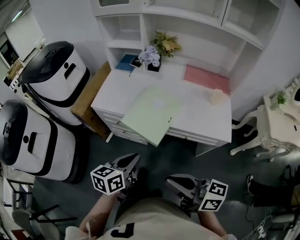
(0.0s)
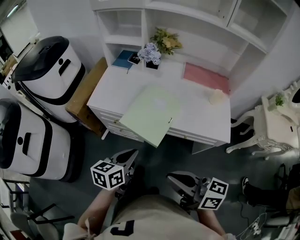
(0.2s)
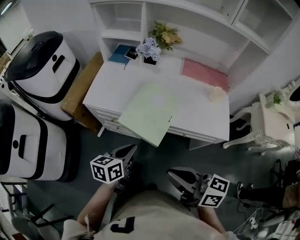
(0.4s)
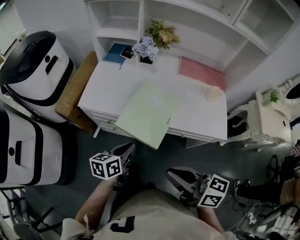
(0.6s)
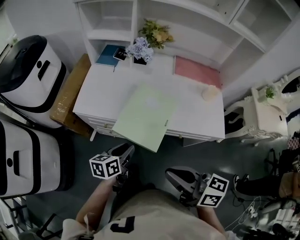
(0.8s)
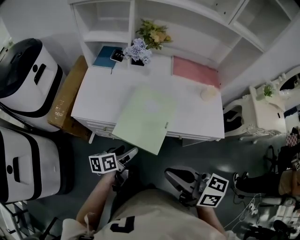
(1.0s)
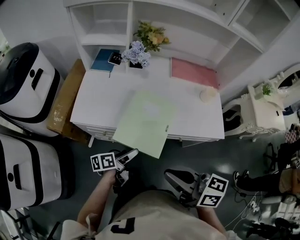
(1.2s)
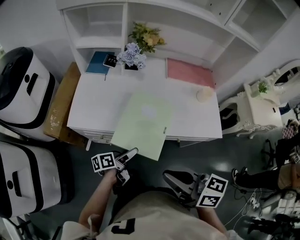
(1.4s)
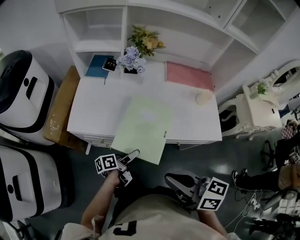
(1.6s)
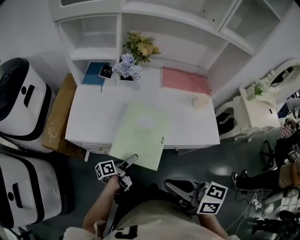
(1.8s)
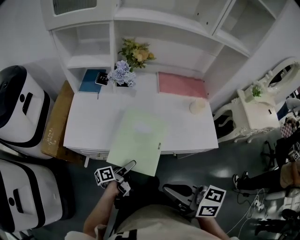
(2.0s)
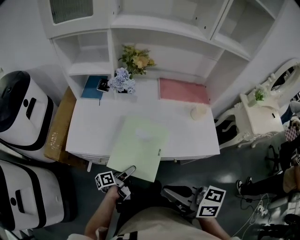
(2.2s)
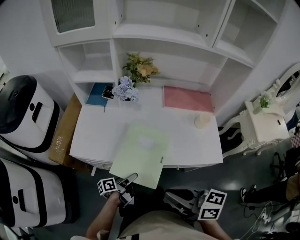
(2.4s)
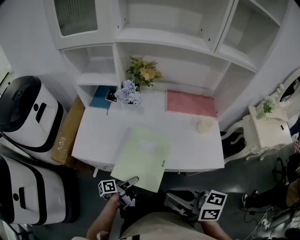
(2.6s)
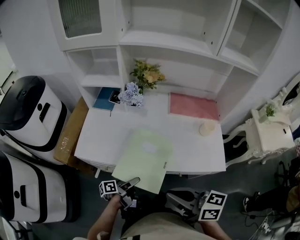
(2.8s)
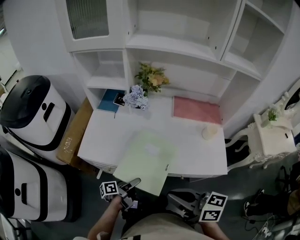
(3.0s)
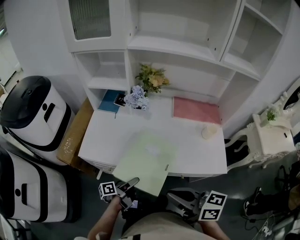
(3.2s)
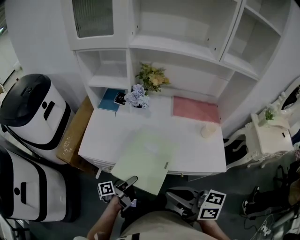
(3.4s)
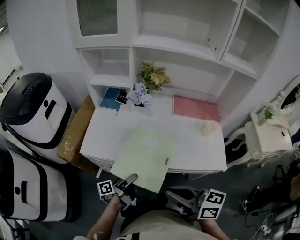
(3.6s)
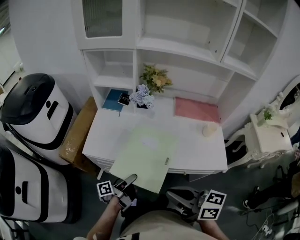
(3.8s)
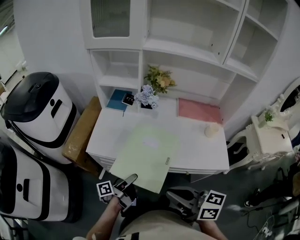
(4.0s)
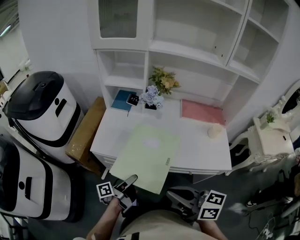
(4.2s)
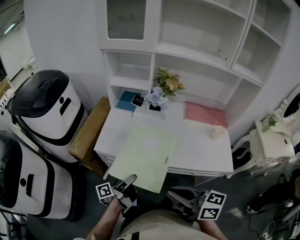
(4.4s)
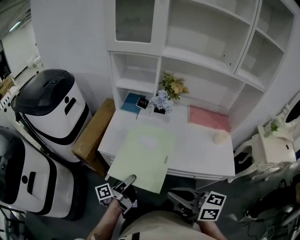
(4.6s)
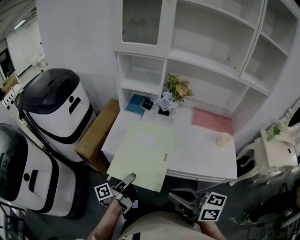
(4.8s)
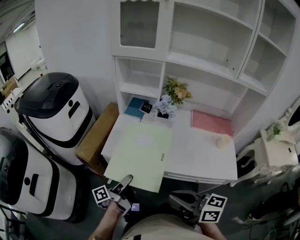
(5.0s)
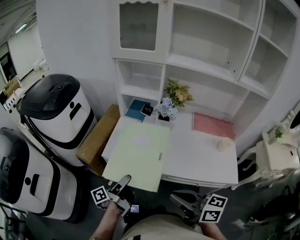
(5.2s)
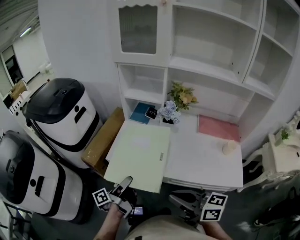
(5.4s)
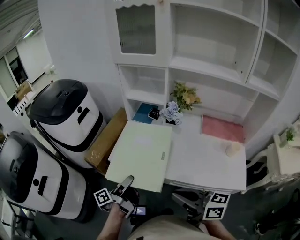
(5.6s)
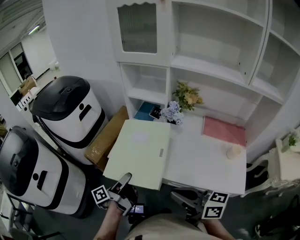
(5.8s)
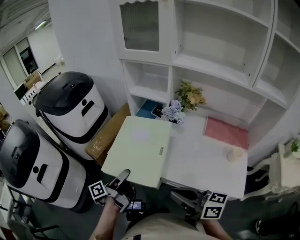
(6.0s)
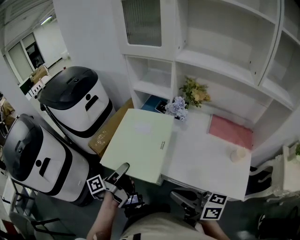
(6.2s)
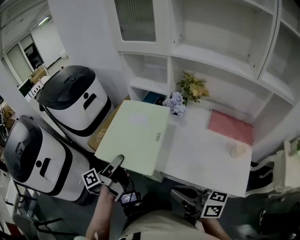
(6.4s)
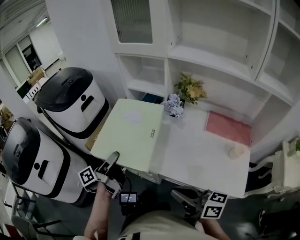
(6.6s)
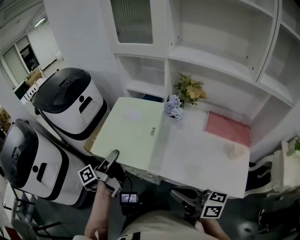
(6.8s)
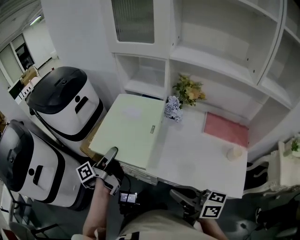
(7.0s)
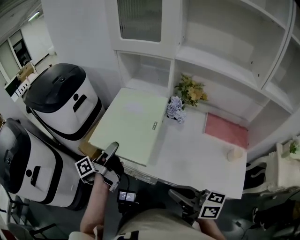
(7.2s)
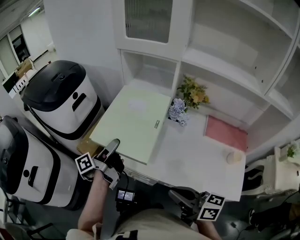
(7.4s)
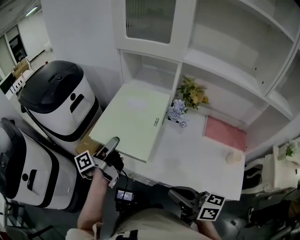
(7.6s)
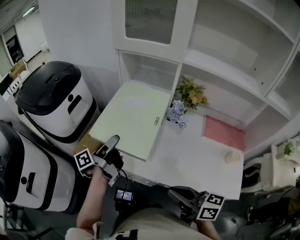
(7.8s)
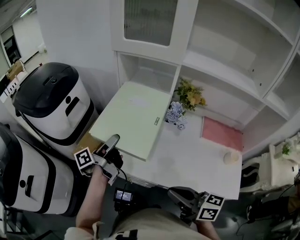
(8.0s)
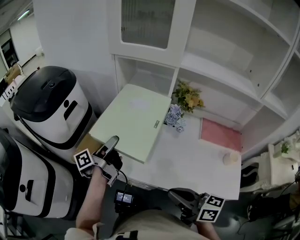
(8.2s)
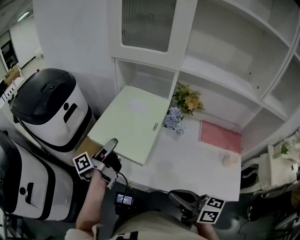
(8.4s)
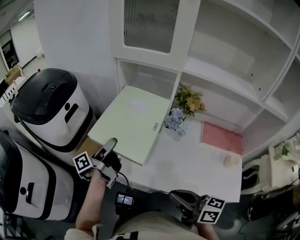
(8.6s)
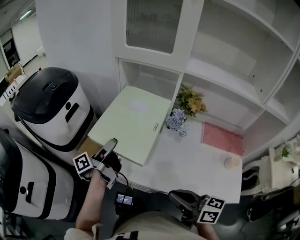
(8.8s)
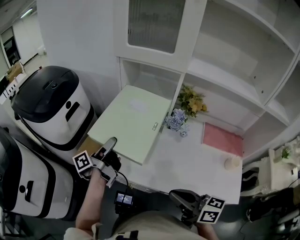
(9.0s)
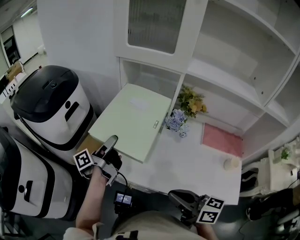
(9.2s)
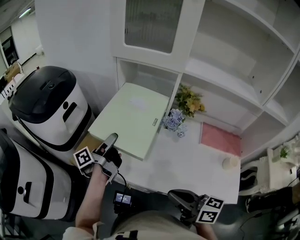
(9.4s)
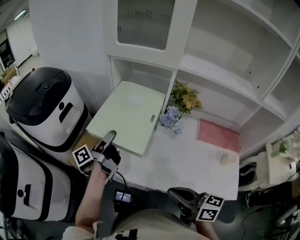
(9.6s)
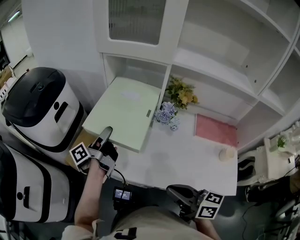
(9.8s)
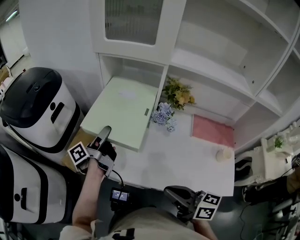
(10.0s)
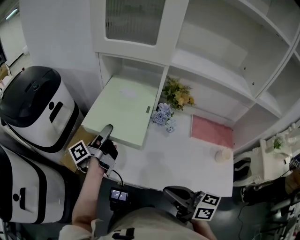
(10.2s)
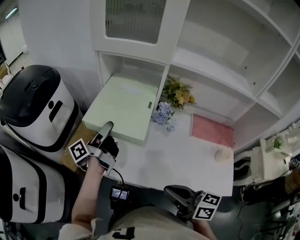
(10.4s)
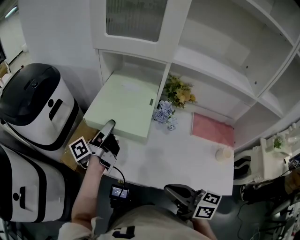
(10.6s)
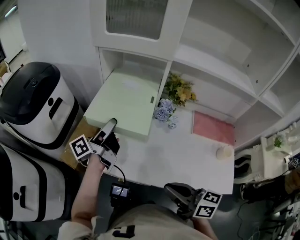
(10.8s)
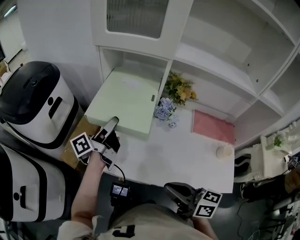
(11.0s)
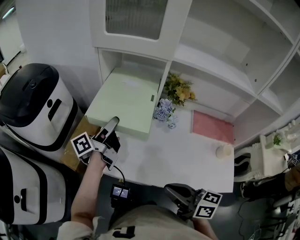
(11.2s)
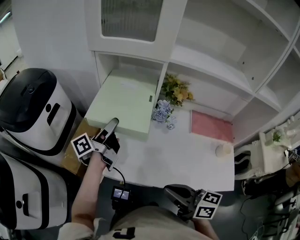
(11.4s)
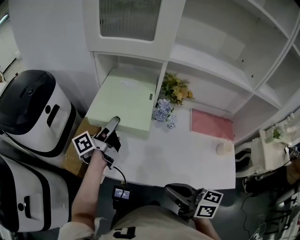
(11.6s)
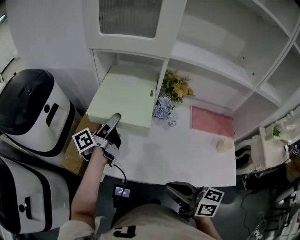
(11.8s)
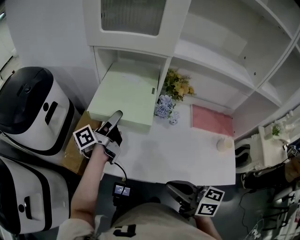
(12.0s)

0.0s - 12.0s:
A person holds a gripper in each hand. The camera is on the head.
0.0s - 1.6s: The right gripper is displaced forward and to the left by roughly 15 cm, and changes its angle by roughly 20 degrees; the left gripper travels downward and forward by approximately 25 cm, rolls counterclockwise, seen from behind, by some 40 degrees, and opens its fingers.
1.6s - 3.0s: The right gripper moves roughly 5 cm, while the left gripper closes its fingers.
3.0s - 4.4s: The right gripper moves to the left, approximately 10 cm. Meanwhile the left gripper is displaced to the left and upward by roughly 15 cm, and changes its angle by approximately 20 degrees.
4.4s - 6.0s: The right gripper moves forward, about 5 cm; the left gripper moves upward and forward, some 10 cm, and changes its angle by about 20 degrees.
6.0s - 7.6s: The left gripper travels forward by roughly 15 cm. Meanwhile the right gripper heads forward, covering roughly 5 cm.
7.6s - 9.0s: The left gripper is displaced forward by roughly 5 cm.
9.0s - 10.4s: The left gripper is displaced to the right by roughly 5 cm.
10.4s - 12.0s: The grippers make only small movements.

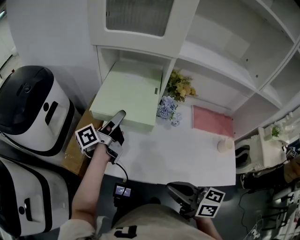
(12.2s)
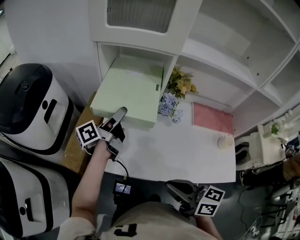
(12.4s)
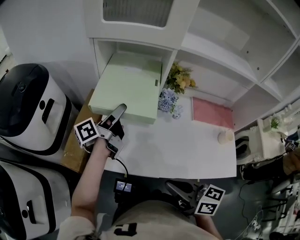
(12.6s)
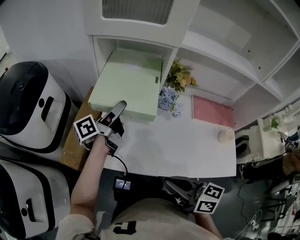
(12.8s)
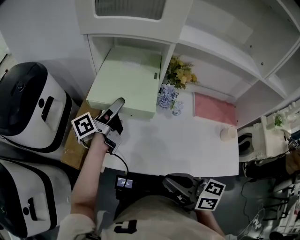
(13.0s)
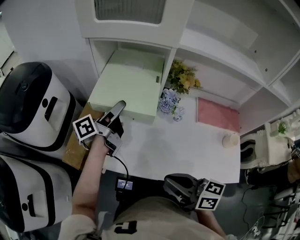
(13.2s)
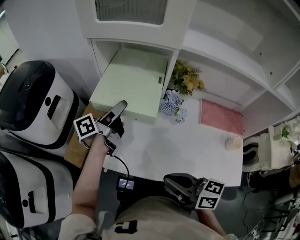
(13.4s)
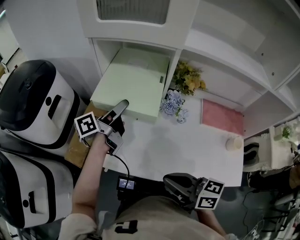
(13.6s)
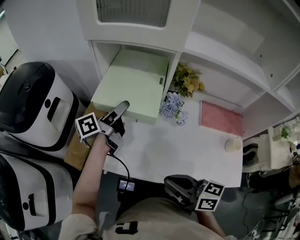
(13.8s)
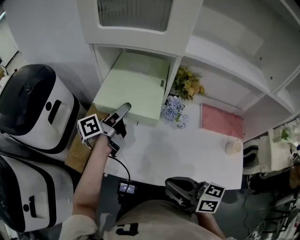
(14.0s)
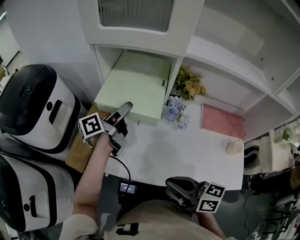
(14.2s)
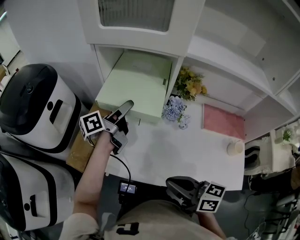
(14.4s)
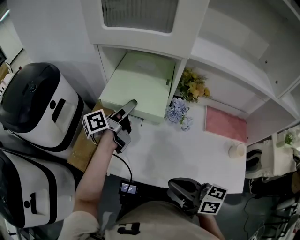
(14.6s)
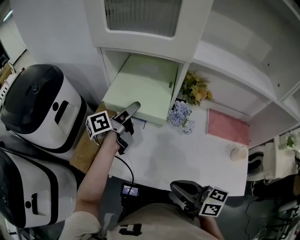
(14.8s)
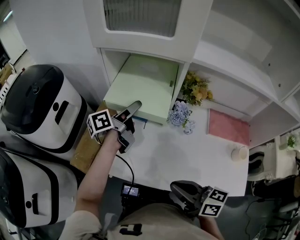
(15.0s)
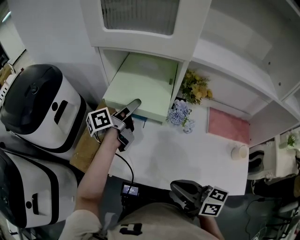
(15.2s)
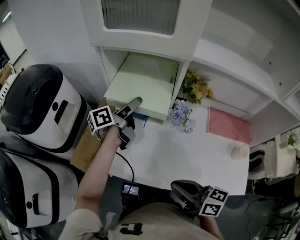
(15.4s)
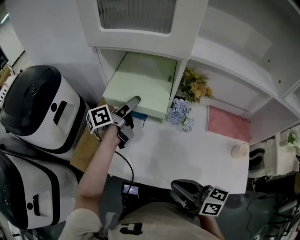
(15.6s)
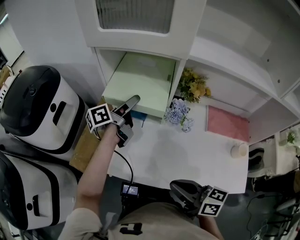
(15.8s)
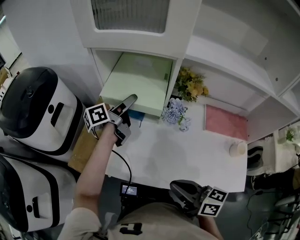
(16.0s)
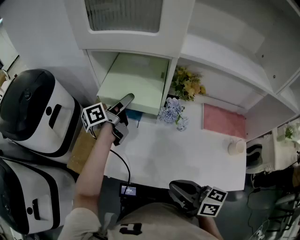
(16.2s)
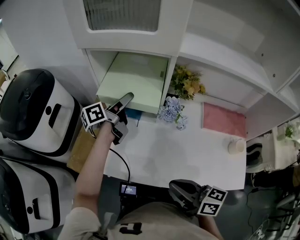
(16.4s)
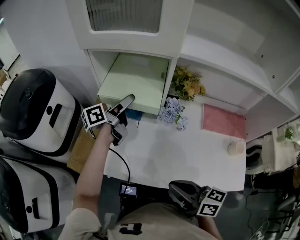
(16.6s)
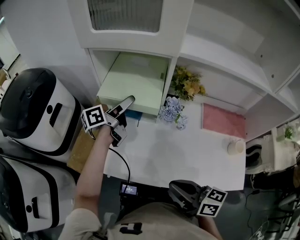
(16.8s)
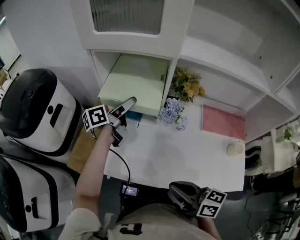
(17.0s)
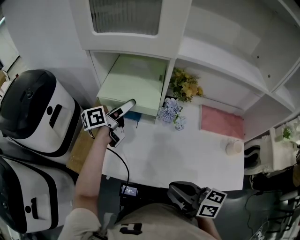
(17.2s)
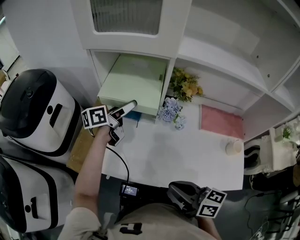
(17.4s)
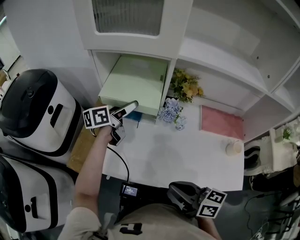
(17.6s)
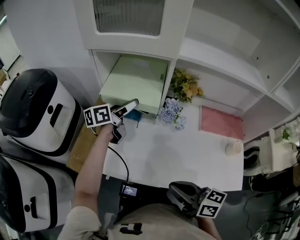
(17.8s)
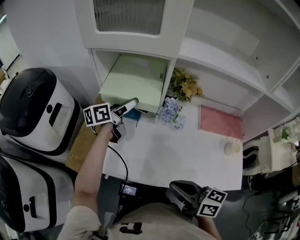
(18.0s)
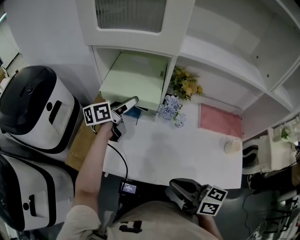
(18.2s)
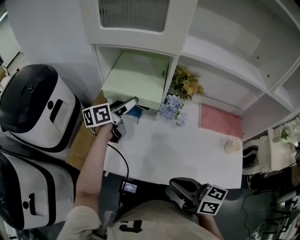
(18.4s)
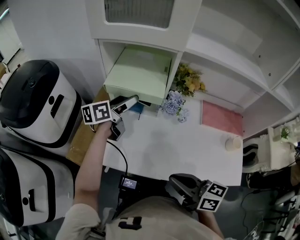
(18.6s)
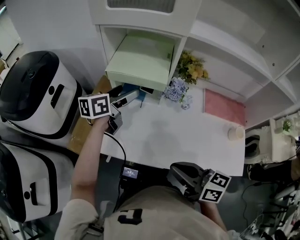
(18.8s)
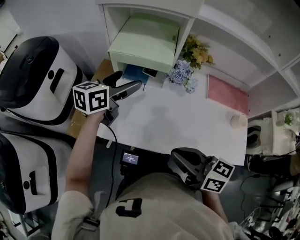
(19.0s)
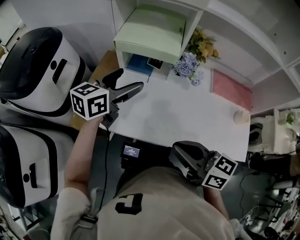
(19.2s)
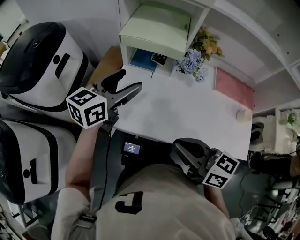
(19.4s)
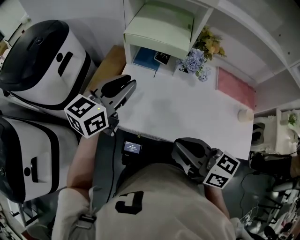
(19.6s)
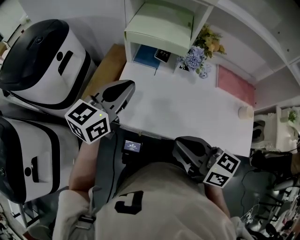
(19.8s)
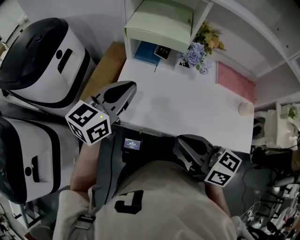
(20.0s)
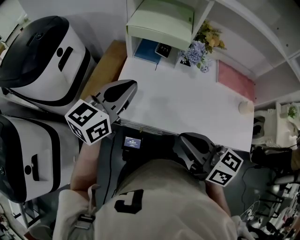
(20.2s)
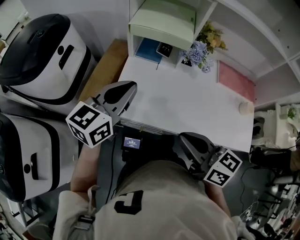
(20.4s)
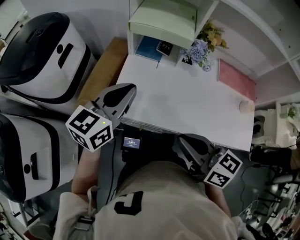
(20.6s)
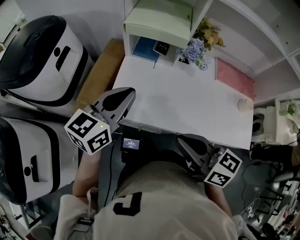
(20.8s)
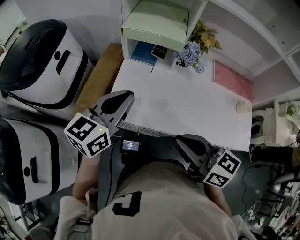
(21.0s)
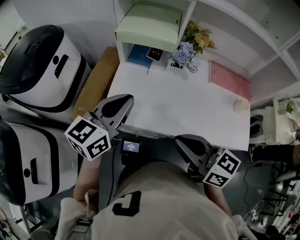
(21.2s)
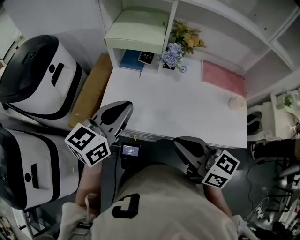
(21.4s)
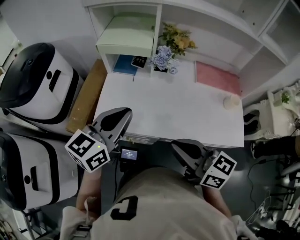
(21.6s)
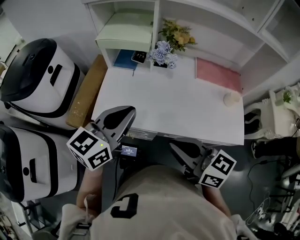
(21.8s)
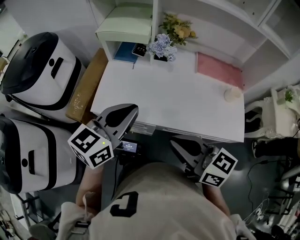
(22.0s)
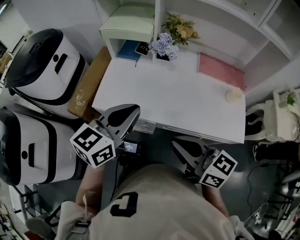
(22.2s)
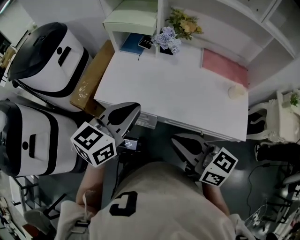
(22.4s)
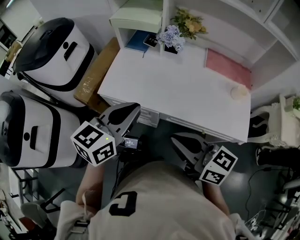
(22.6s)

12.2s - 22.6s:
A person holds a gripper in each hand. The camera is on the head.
12.2s - 13.6s: The grippers stay close to where they were, moving slightly.
13.6s - 15.2s: The grippers move only a little.
15.2s - 16.6s: The grippers move only a little.
16.6s - 18.2s: The grippers make only small movements.
18.2s - 19.6s: The left gripper heads backward and to the left, covering approximately 20 cm, changes its angle by some 30 degrees, and closes up. The right gripper heads to the left, covering about 5 cm.
19.6s - 21.2s: The left gripper is displaced backward by approximately 10 cm.
21.2s - 22.6s: The grippers both shift backward and to the right by about 15 cm.

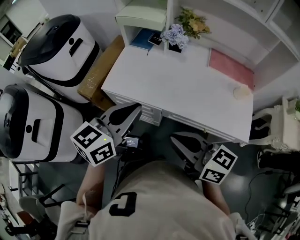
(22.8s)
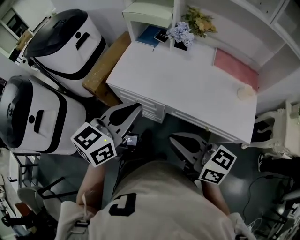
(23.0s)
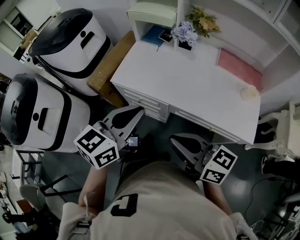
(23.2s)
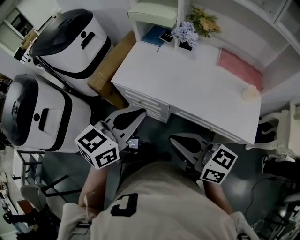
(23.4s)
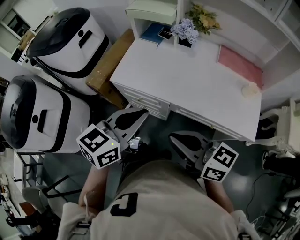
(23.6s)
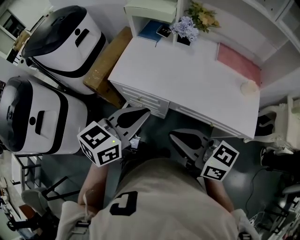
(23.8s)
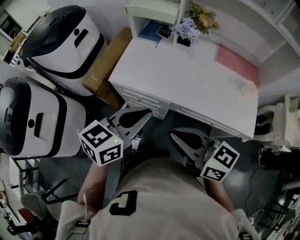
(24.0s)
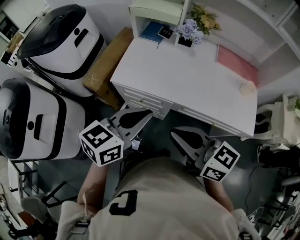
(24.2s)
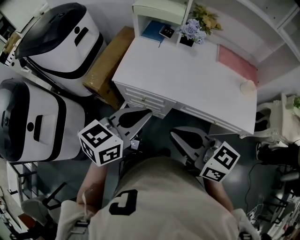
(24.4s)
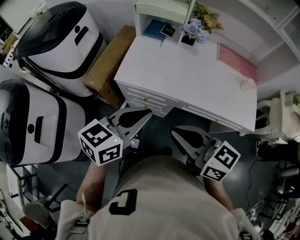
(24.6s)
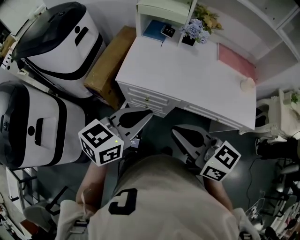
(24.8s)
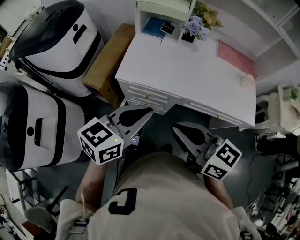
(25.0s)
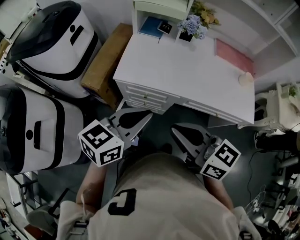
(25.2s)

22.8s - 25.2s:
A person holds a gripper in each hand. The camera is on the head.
22.8s - 24.0s: The right gripper moves to the left, some 5 cm.
24.0s - 25.2s: Both grippers travel together to the left, approximately 10 cm.
